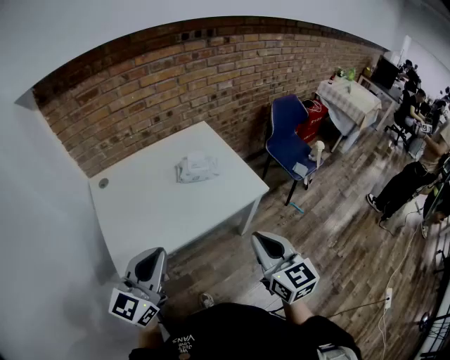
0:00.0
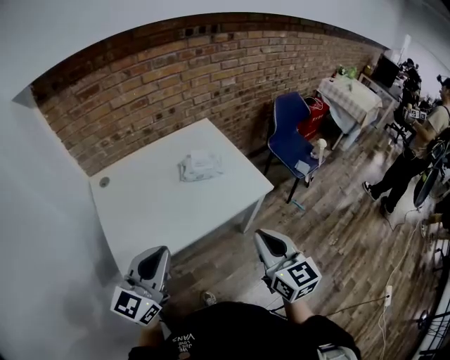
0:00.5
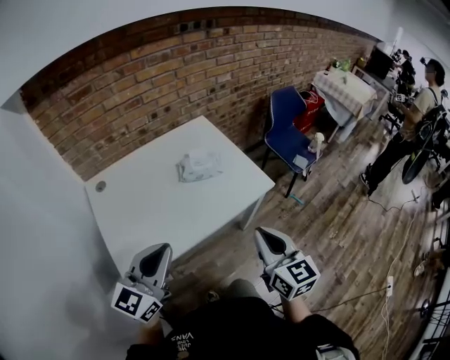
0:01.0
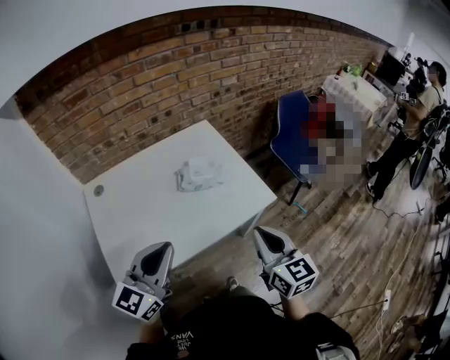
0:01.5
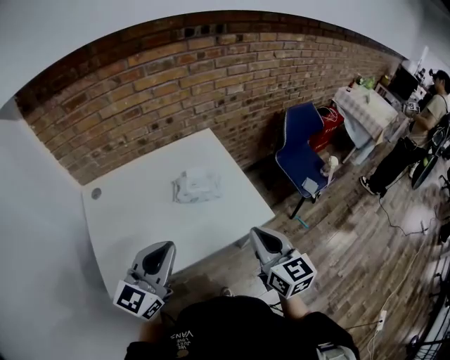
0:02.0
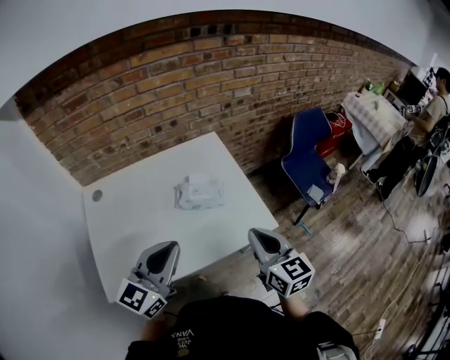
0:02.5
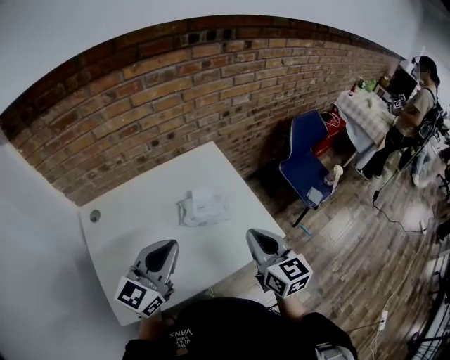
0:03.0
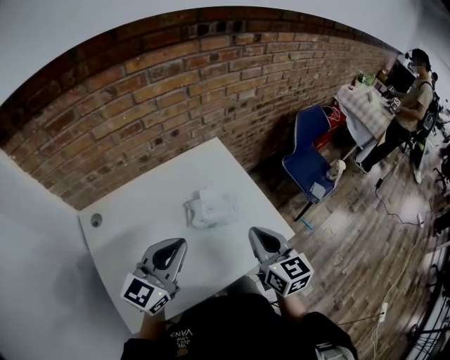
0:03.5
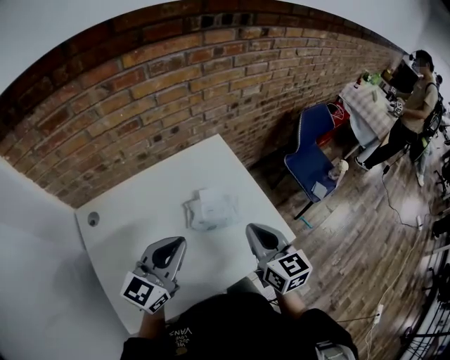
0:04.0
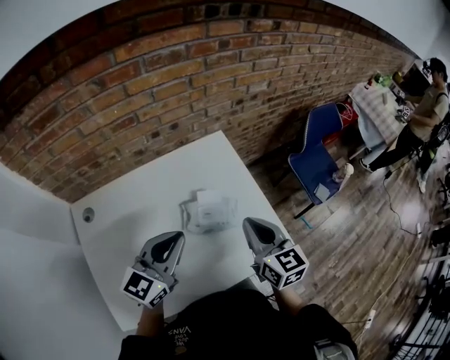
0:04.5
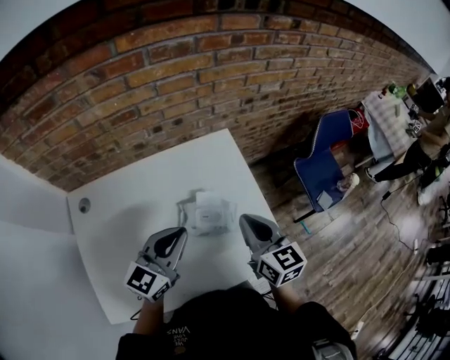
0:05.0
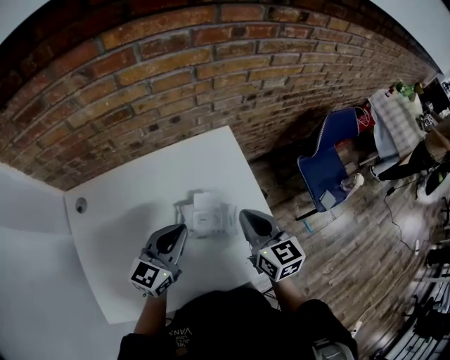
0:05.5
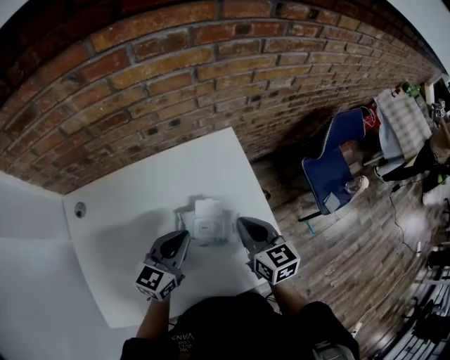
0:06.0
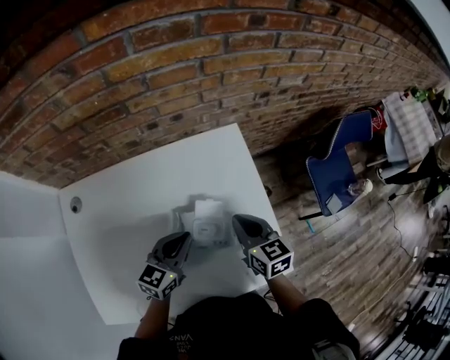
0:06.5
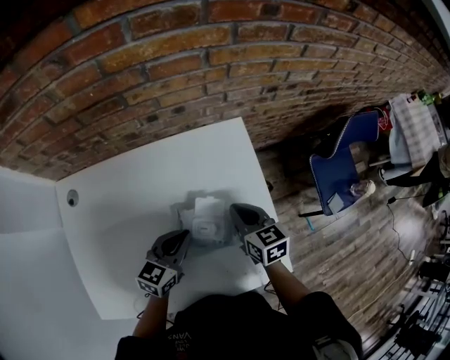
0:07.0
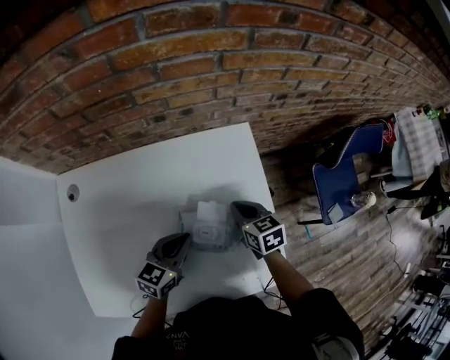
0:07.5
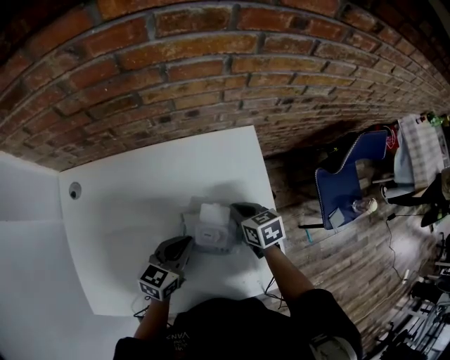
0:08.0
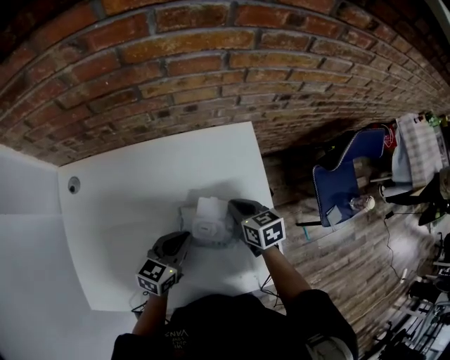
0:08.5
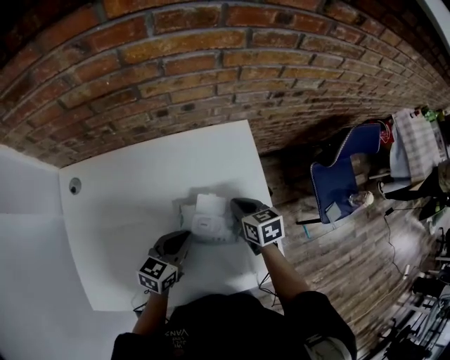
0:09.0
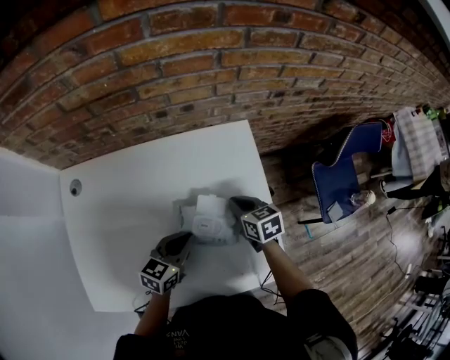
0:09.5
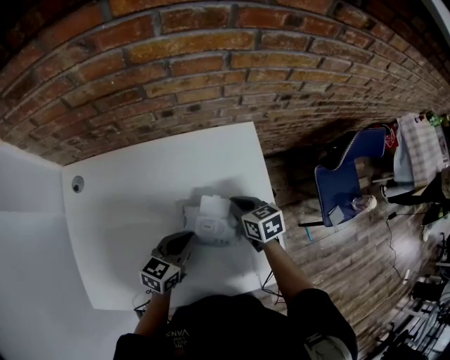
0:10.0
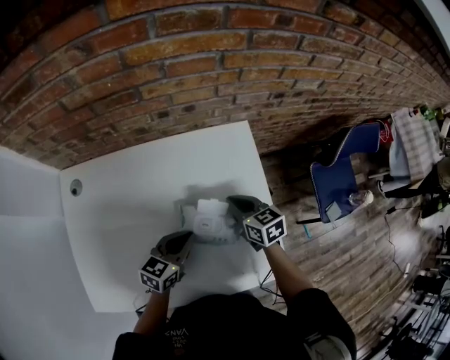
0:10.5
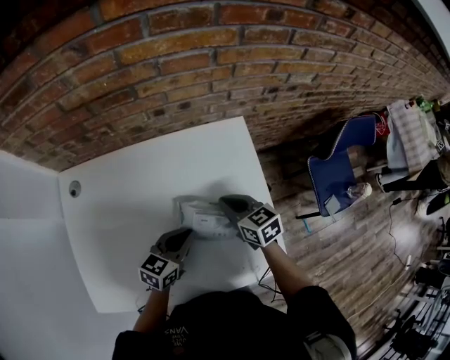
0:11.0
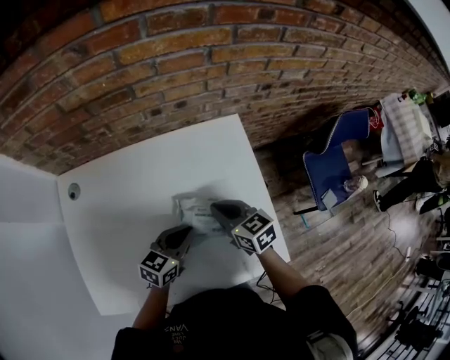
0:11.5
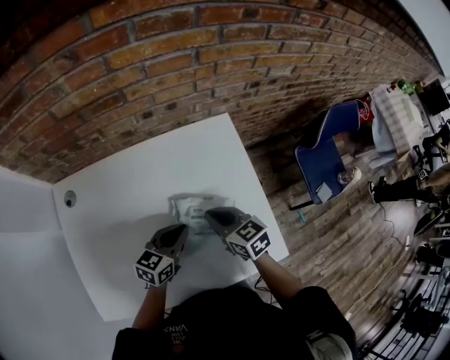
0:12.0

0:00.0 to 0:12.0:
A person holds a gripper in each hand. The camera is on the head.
0:00.0 to 0:02.0: Both grippers travel together forward, approximately 15 cm.
0:02.0 to 0:04.0: Both grippers travel together forward and to the left, roughly 20 cm.
0:04.0 to 0:06.0: The left gripper is displaced downward and forward by about 20 cm, while the right gripper travels forward and downward by approximately 15 cm.
0:06.0 to 0:08.0: The right gripper heads downward and forward, covering about 15 cm, and changes its angle by roughly 30 degrees. The left gripper goes some 10 cm downward.
0:08.0 to 0:10.0: The grippers make only small movements.
0:10.0 to 0:12.0: The right gripper heads backward, upward and to the left, covering about 10 cm.

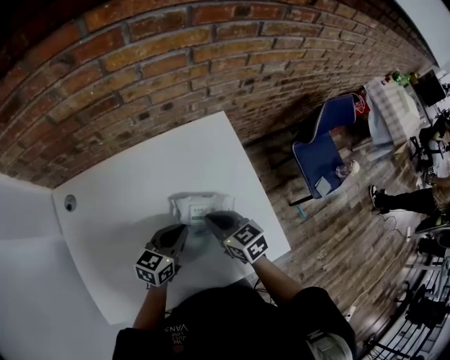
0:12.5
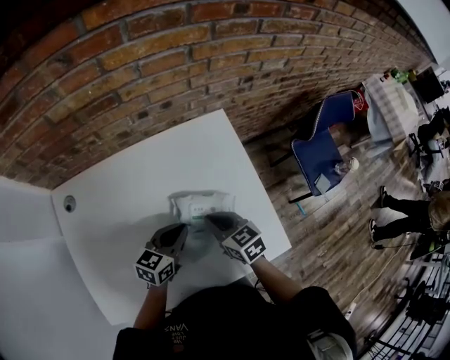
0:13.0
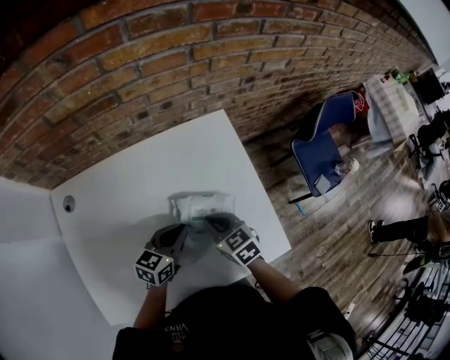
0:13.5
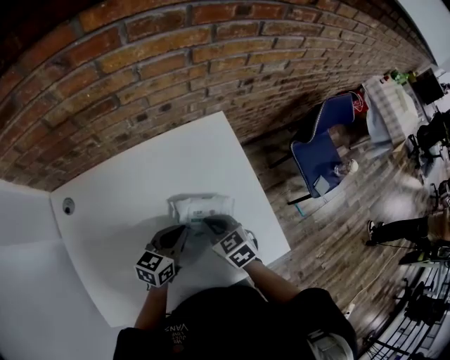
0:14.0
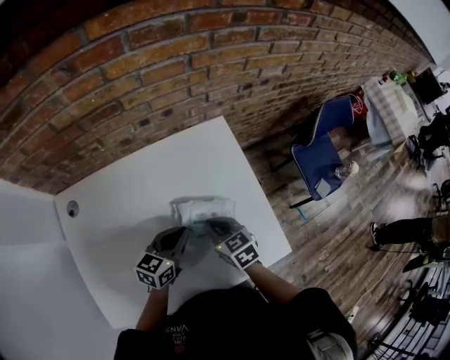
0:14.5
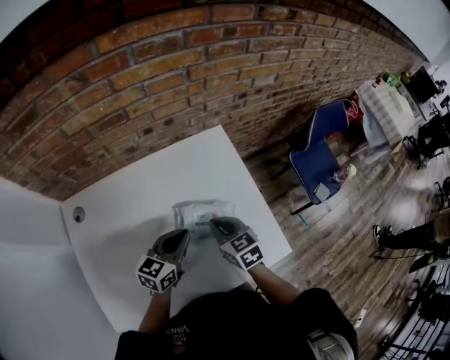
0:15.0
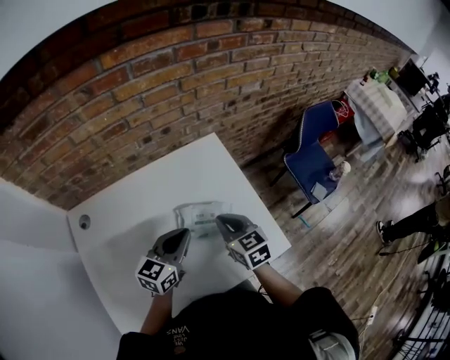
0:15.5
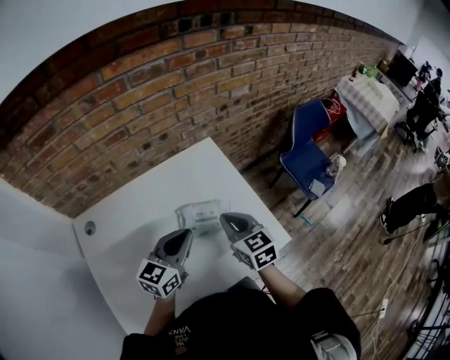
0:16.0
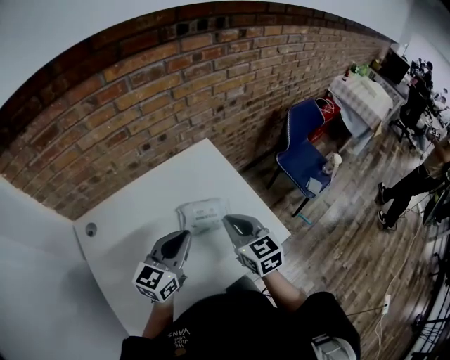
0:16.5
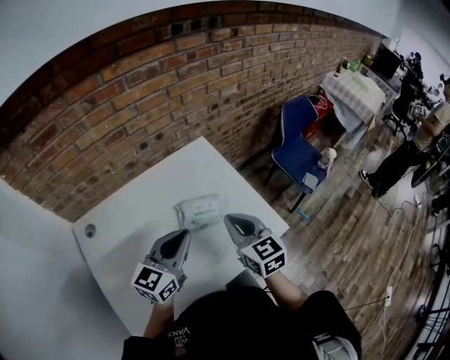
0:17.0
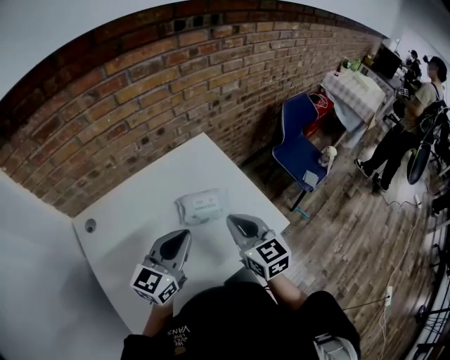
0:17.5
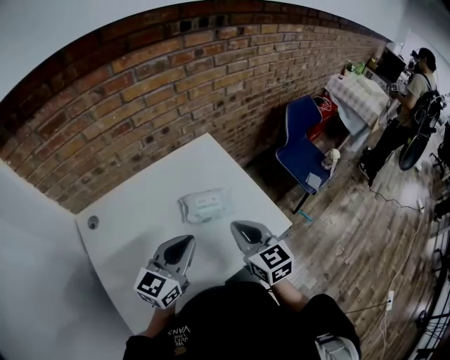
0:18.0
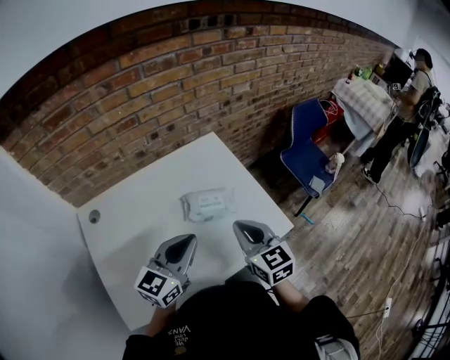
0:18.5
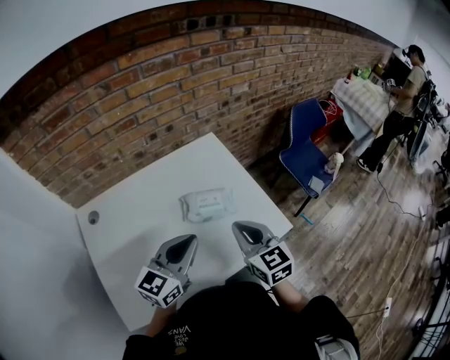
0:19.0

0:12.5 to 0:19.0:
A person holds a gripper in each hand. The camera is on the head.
0:12.5 to 0:14.5: The grippers stay close to where they were, moving slightly.
0:14.5 to 0:17.0: Both grippers travel together upward and backward, about 20 cm. The left gripper changes its angle by about 20 degrees. The right gripper rotates approximately 30 degrees.
0:17.0 to 0:19.0: There are only small adjustments of the grippers.

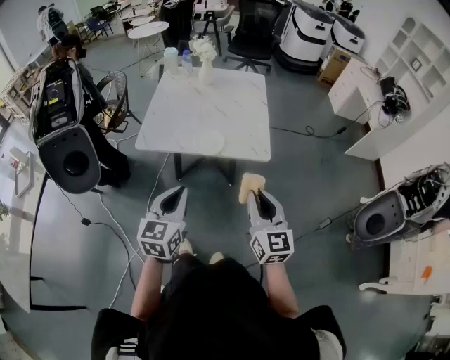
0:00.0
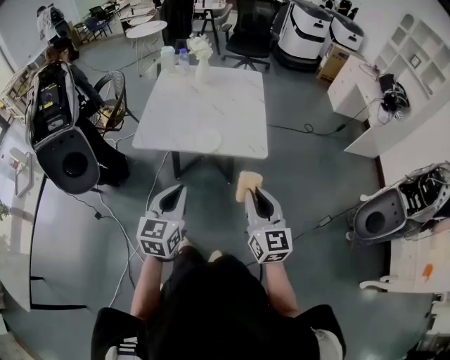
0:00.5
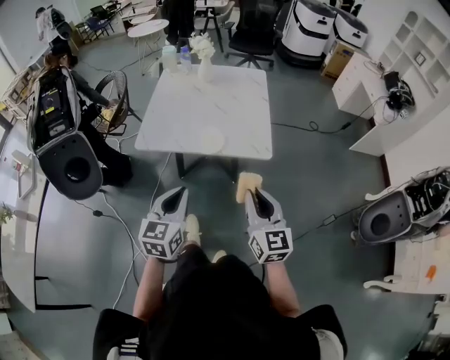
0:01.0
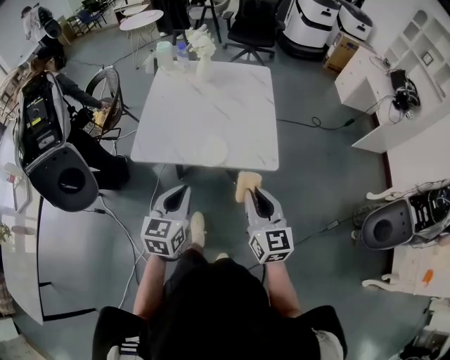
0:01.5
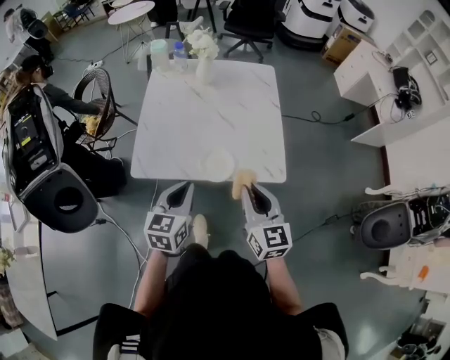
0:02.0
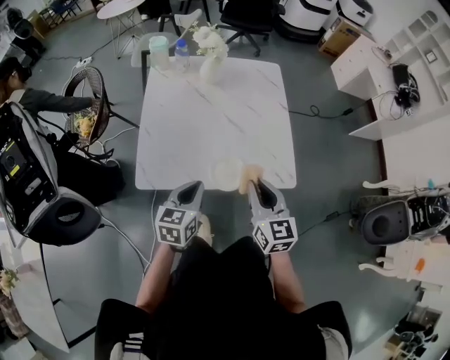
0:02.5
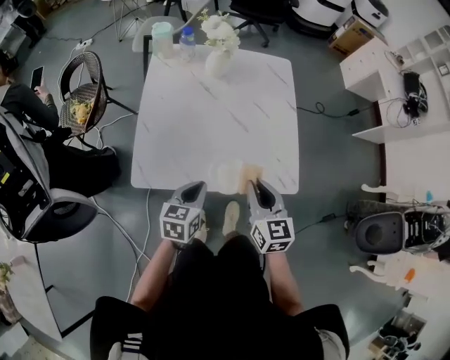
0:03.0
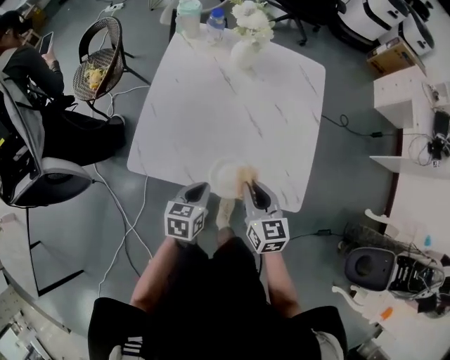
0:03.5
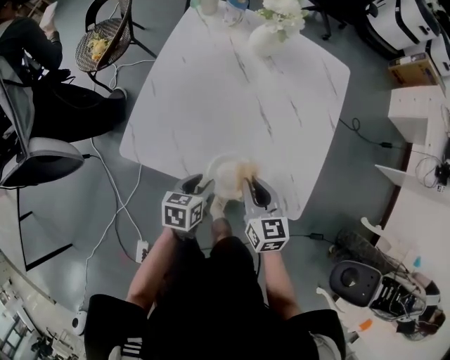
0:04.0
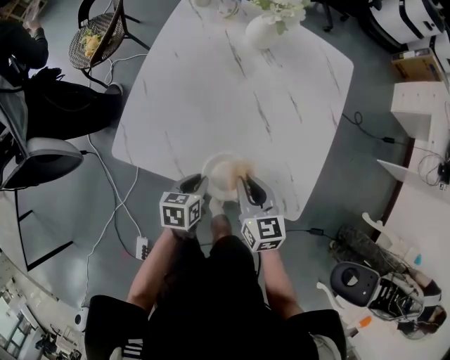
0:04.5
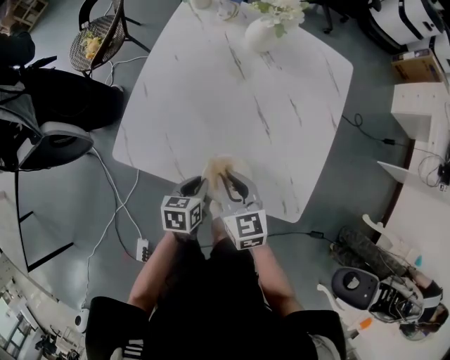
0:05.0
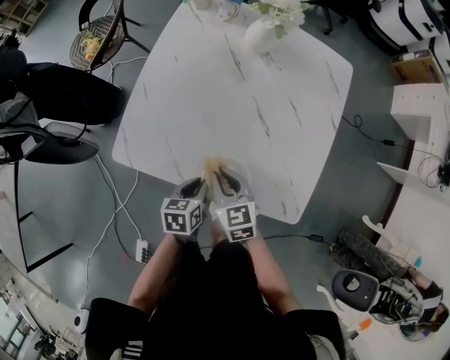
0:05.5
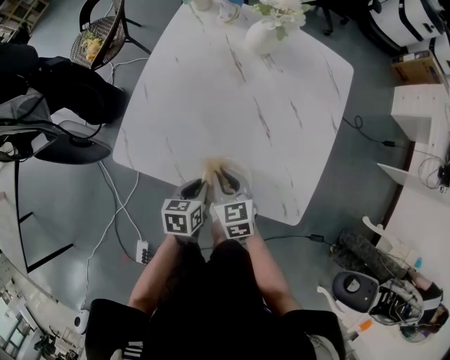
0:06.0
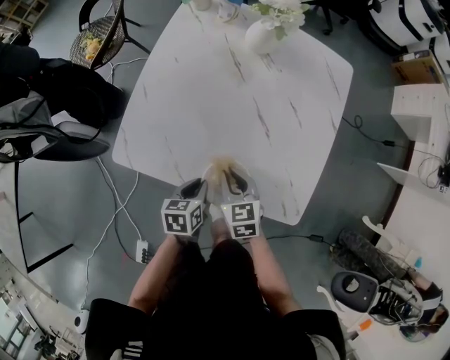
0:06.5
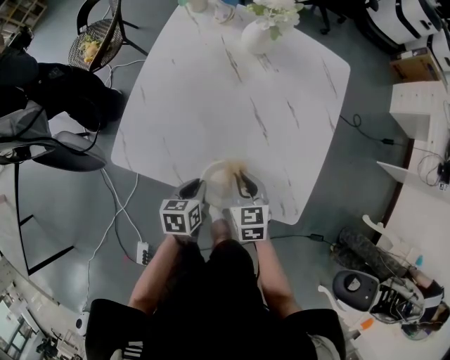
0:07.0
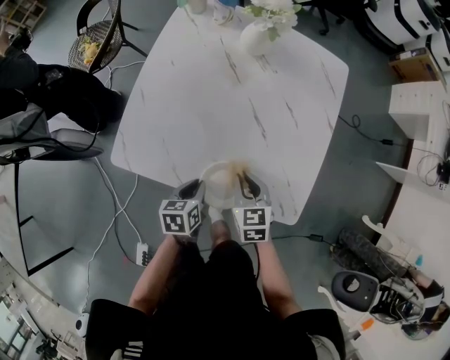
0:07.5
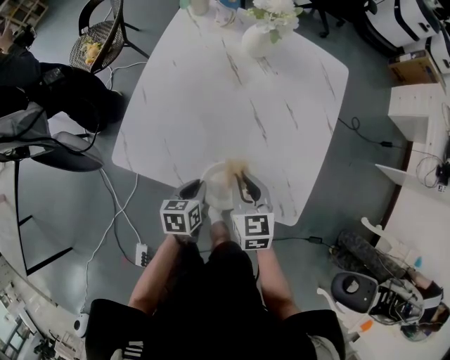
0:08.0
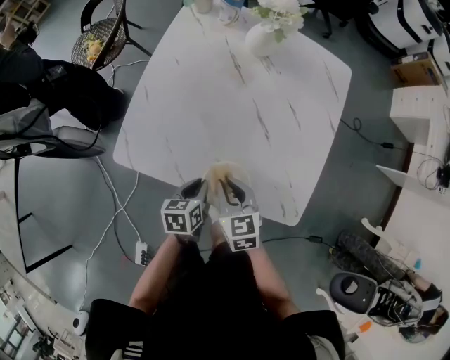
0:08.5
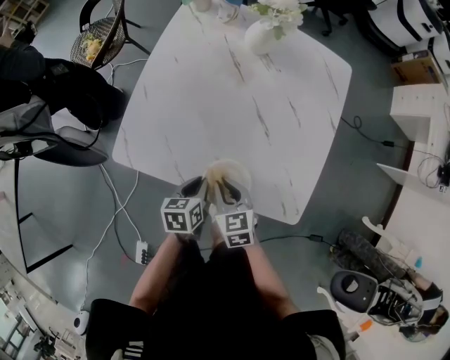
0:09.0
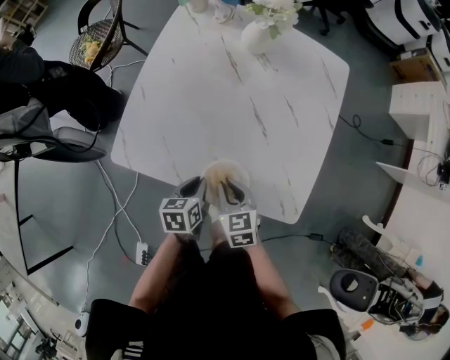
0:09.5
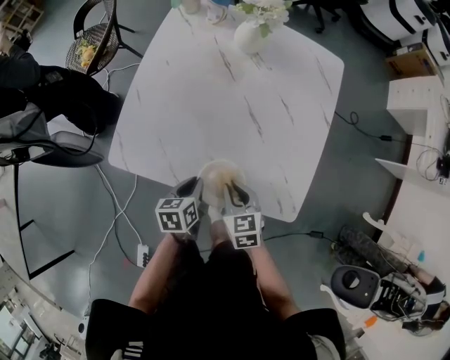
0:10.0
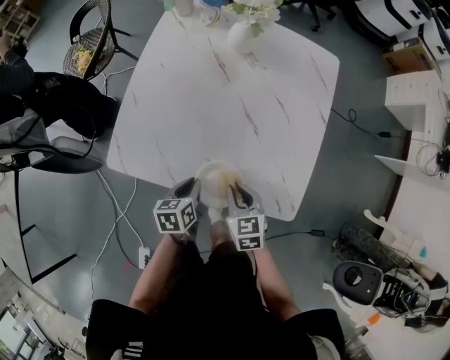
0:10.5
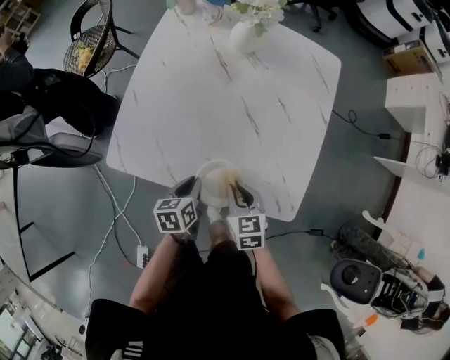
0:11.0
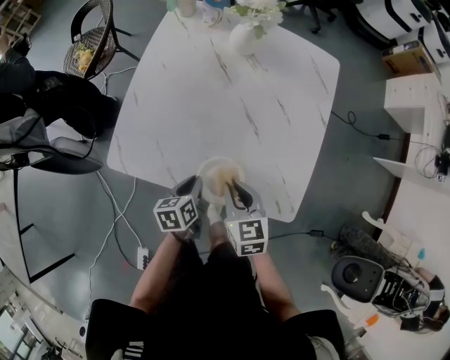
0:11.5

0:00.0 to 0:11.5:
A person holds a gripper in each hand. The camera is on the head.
0:00.0 to 0:02.0: Both grippers move forward, about 25 cm.
0:02.0 to 0:04.0: Both grippers move downward and forward, approximately 25 cm. The right gripper swivels approximately 30 degrees. The left gripper rotates approximately 40 degrees, and opens up.
0:04.0 to 0:06.0: The right gripper is displaced downward and to the left by some 10 cm. The left gripper closes.
0:06.0 to 0:07.5: The right gripper goes about 10 cm to the right.
0:07.5 to 0:09.5: The right gripper shifts by about 5 cm.
0:09.5 to 0:11.5: The right gripper travels upward by approximately 5 cm.
